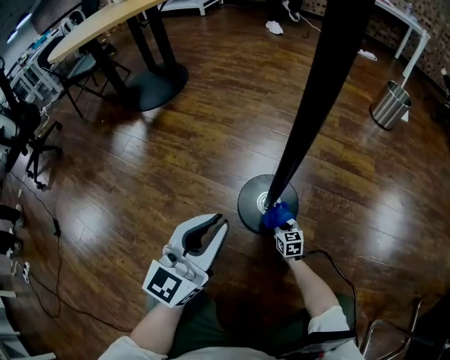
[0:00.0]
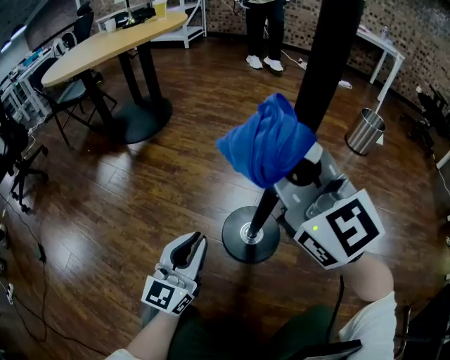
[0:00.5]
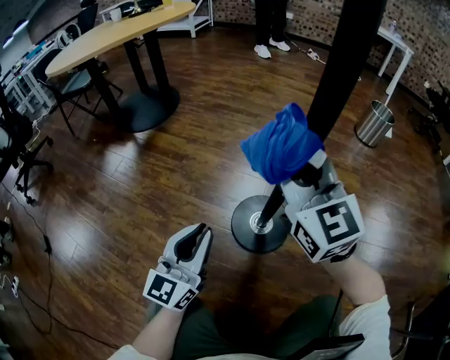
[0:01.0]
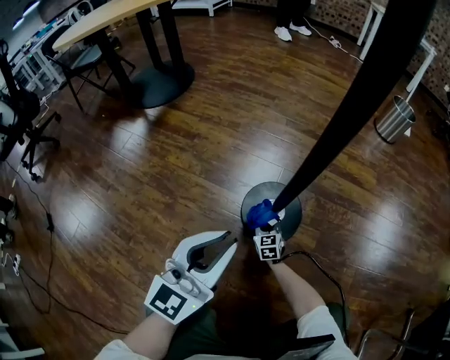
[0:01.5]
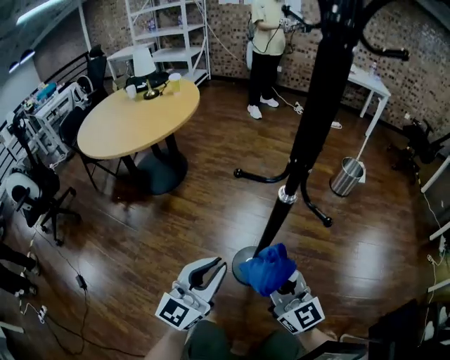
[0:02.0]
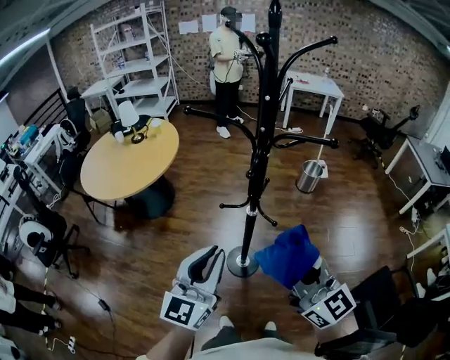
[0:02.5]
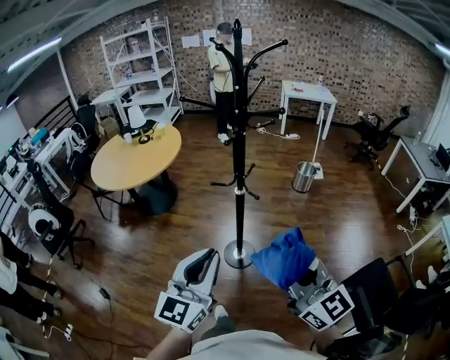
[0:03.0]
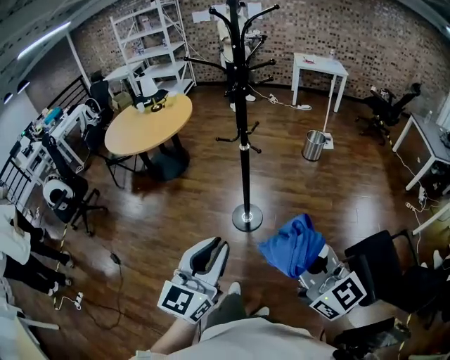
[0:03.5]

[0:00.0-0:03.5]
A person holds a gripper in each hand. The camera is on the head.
0:00.0 to 0:02.0: The right gripper moves up and down over some 80 cm, changing direction 2 times, and points its fingers roughly 40 degrees further upward; the left gripper travels upward by approximately 35 cm.
0:02.0 to 0:03.5: The grippers both shift backward and upward by some 50 cm.

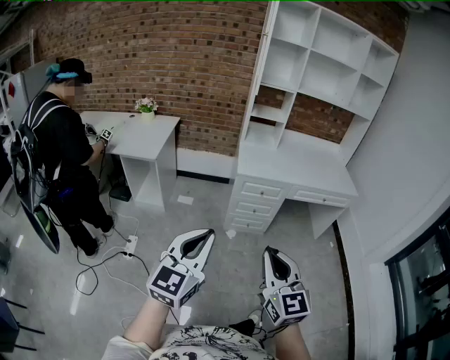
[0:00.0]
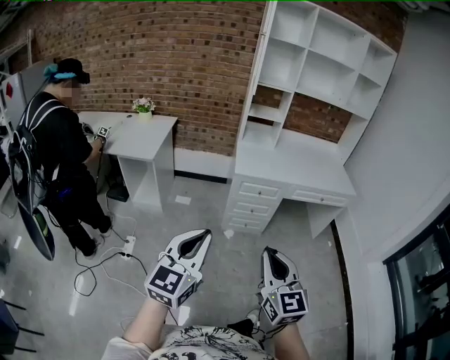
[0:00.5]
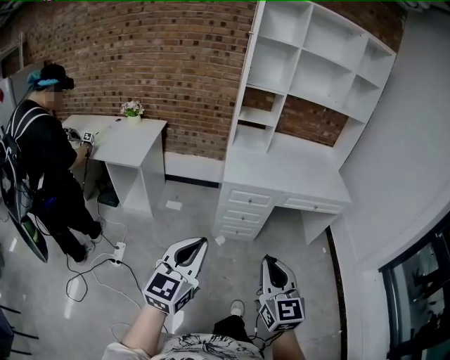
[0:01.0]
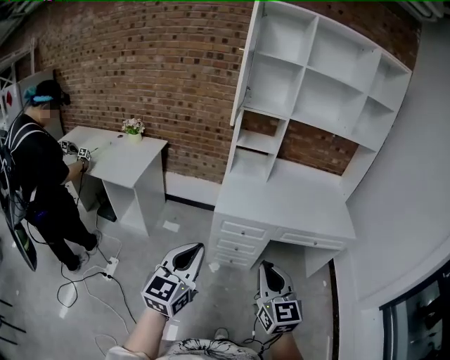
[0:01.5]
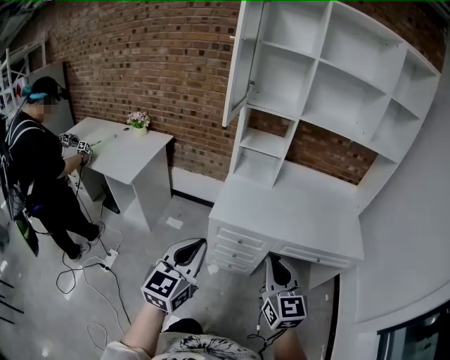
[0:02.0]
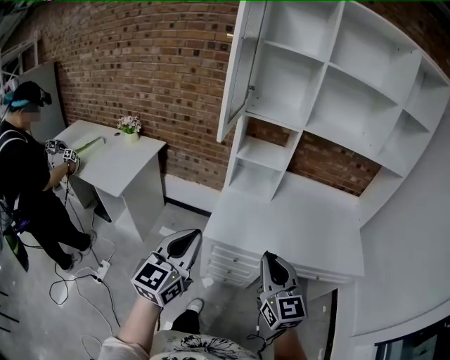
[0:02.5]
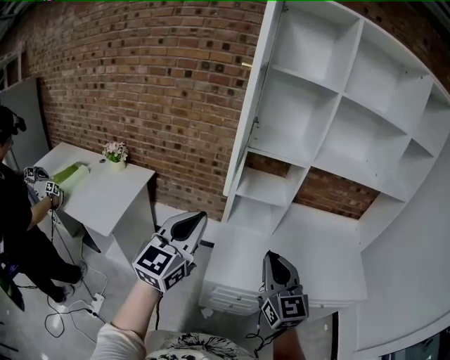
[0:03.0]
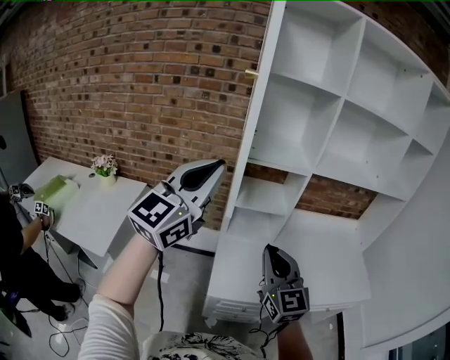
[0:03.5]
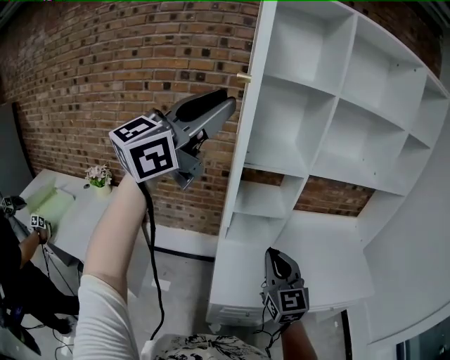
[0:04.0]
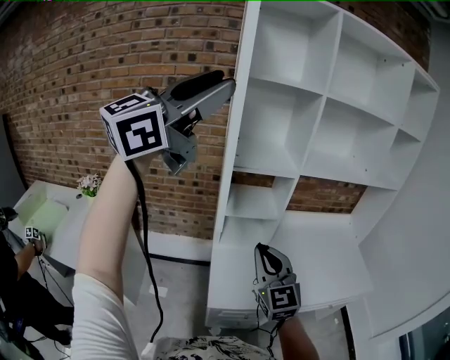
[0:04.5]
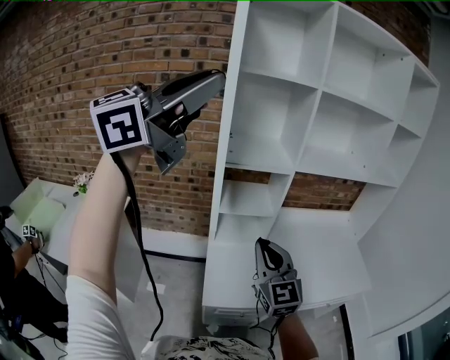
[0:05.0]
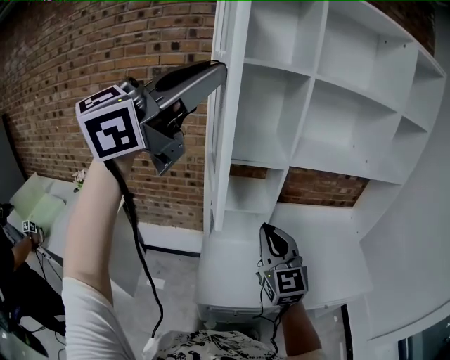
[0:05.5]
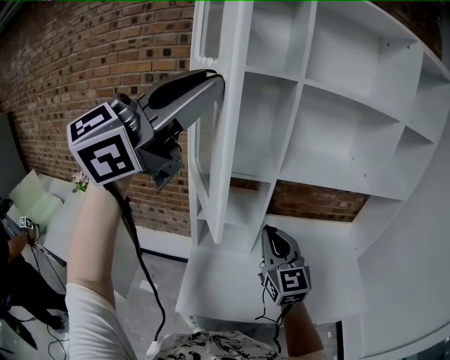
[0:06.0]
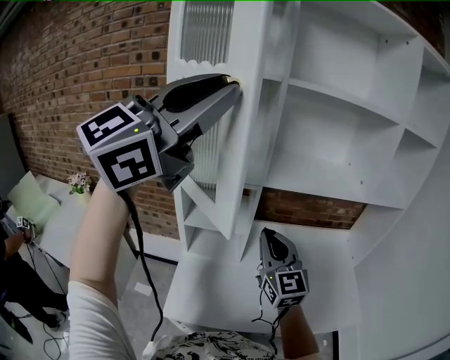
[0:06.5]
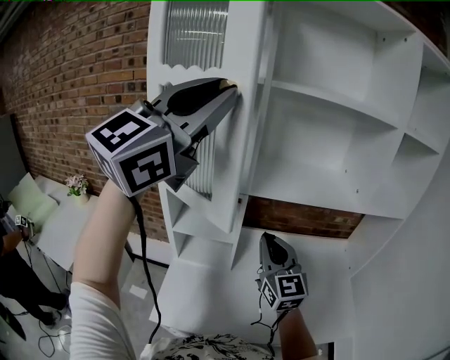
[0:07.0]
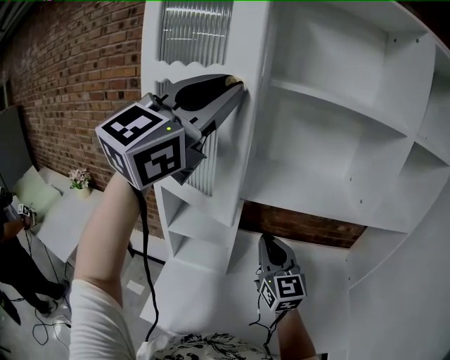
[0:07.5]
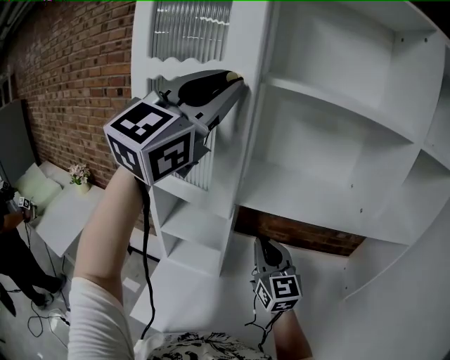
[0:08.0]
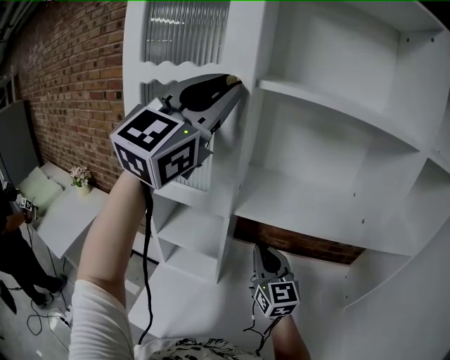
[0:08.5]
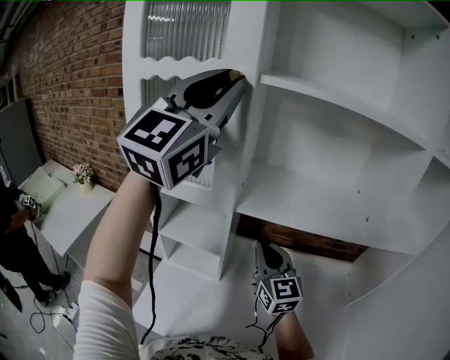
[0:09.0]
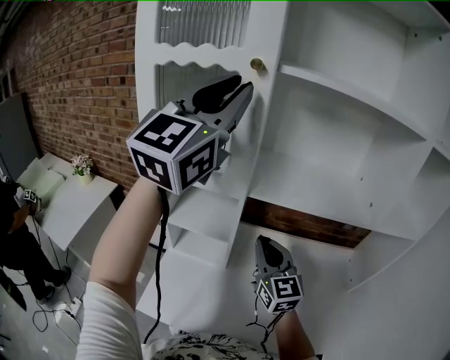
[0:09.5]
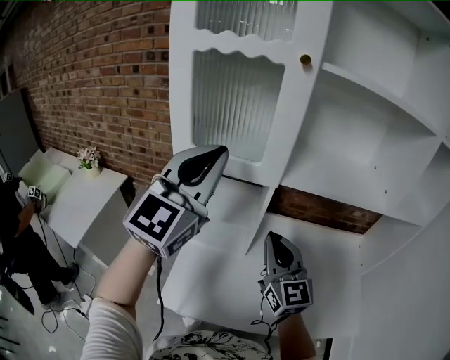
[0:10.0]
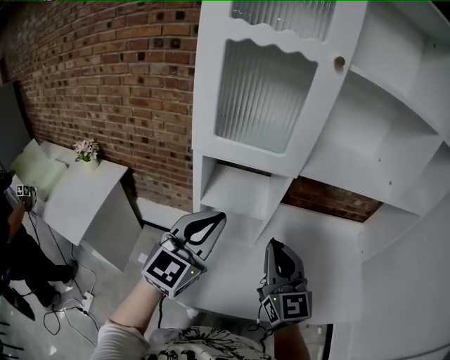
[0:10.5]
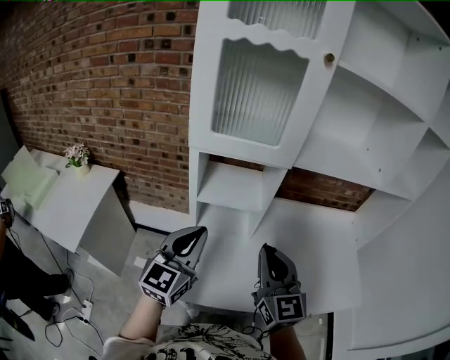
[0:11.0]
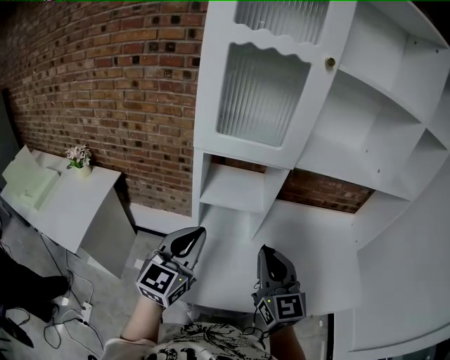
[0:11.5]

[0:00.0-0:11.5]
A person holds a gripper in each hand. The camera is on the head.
0:00.0 to 0:02.0: The grippers both shift forward and to the right by about 40 cm.
0:02.0 to 0:04.0: The left gripper travels forward and upward by approximately 60 cm, swivels approximately 50 degrees, and opens. Meanwhile the right gripper moves forward and to the left, some 40 cm.
0:04.0 to 0:06.0: The left gripper goes about 15 cm to the right and forward, while the right gripper moves forward and to the right, some 20 cm.
0:06.0 to 0:07.5: Both grippers travel together forward and to the right, some 20 cm. The left gripper turns by approximately 20 degrees.
0:07.5 to 0:09.5: The left gripper goes some 5 cm forward.
0:09.5 to 0:11.5: The left gripper is displaced downward, backward and to the left by approximately 40 cm, turns by approximately 30 degrees, and closes its fingers; the right gripper moves backward and to the left, roughly 20 cm.

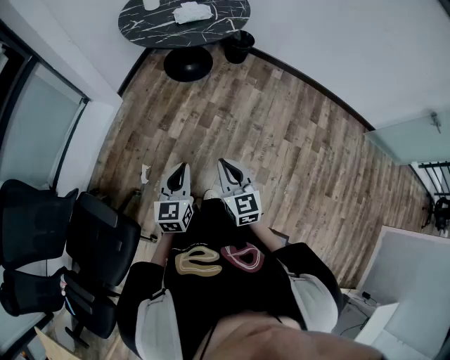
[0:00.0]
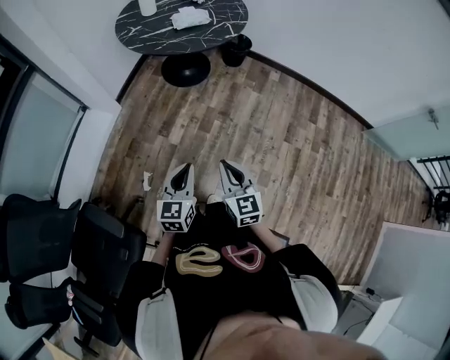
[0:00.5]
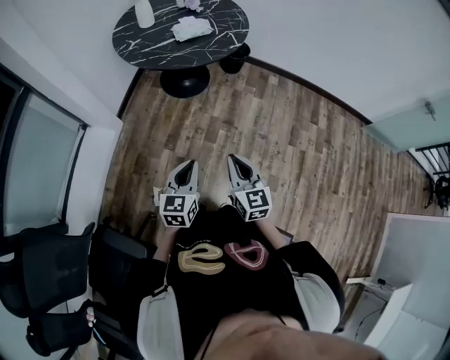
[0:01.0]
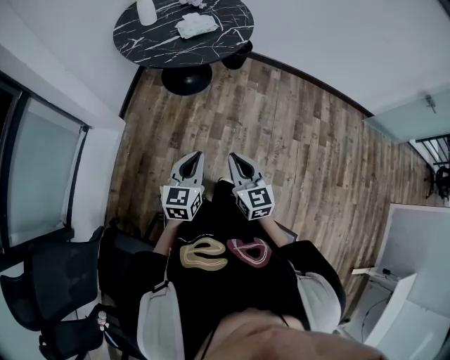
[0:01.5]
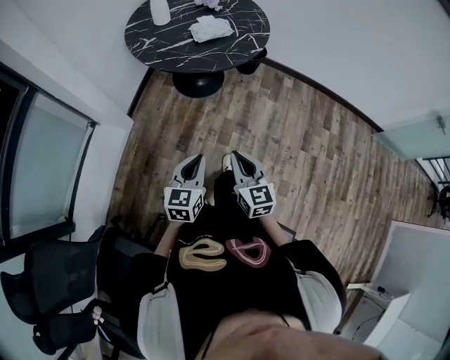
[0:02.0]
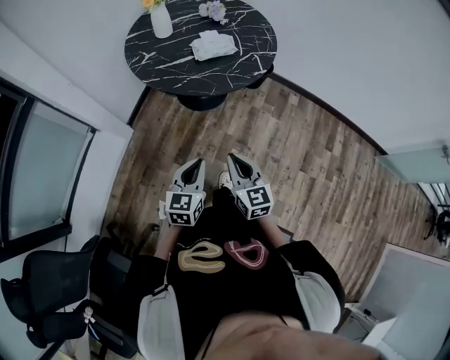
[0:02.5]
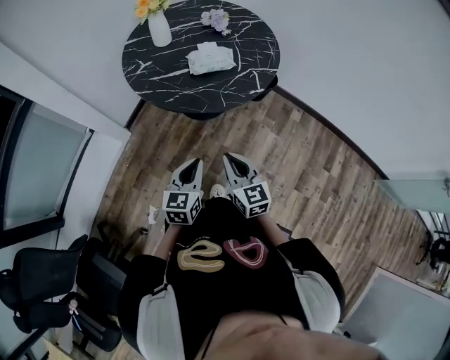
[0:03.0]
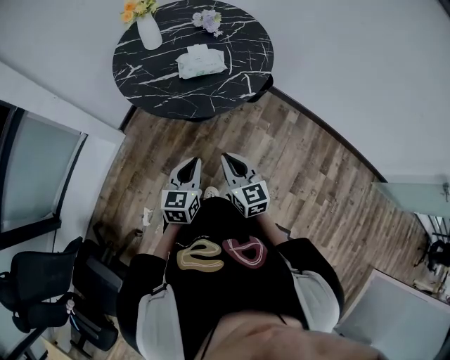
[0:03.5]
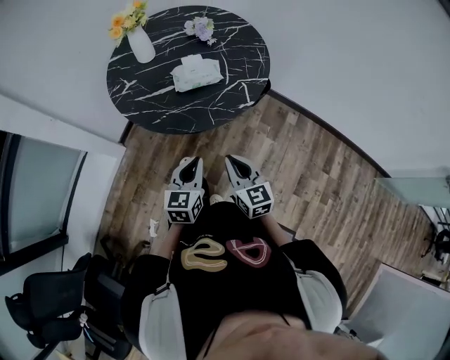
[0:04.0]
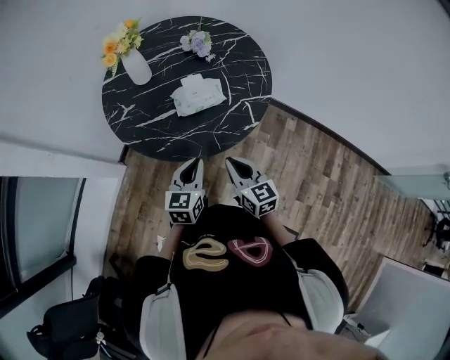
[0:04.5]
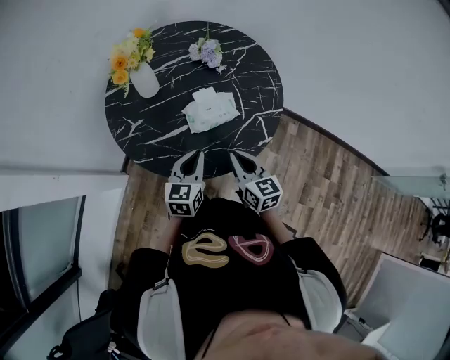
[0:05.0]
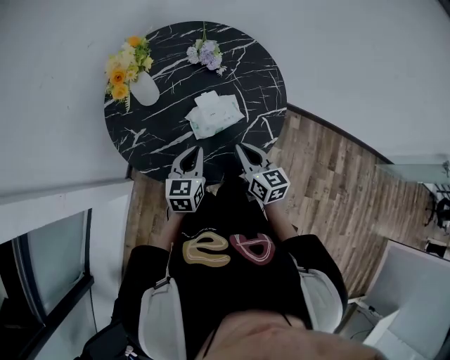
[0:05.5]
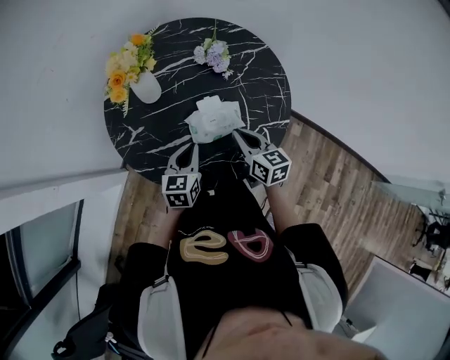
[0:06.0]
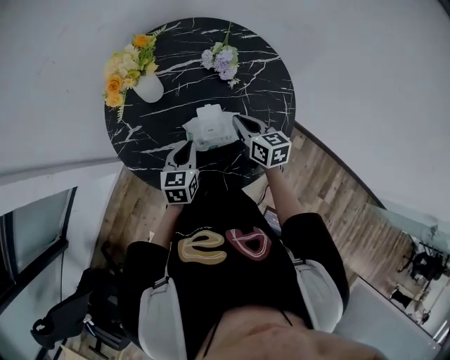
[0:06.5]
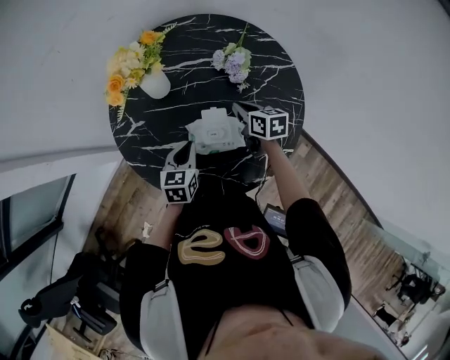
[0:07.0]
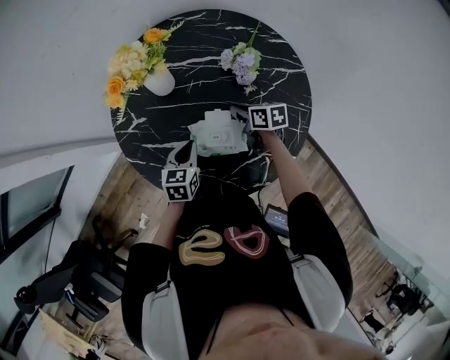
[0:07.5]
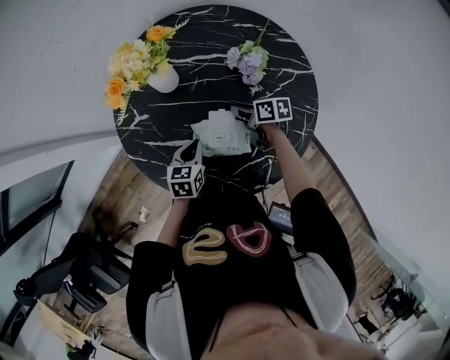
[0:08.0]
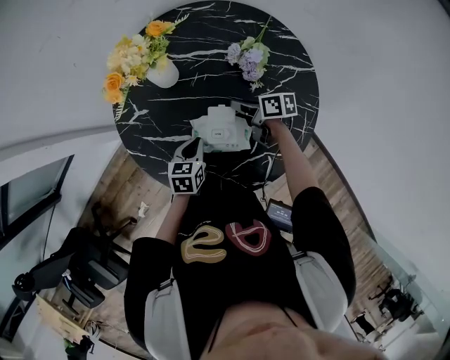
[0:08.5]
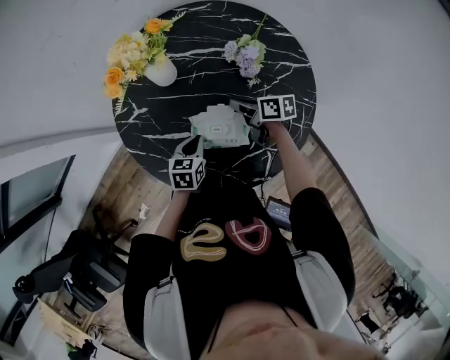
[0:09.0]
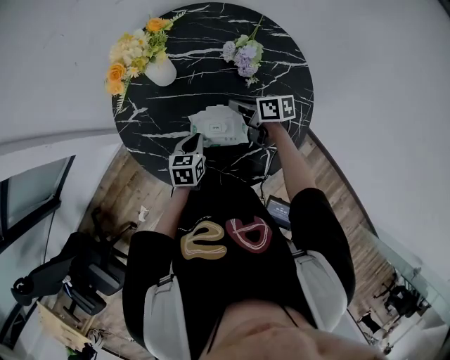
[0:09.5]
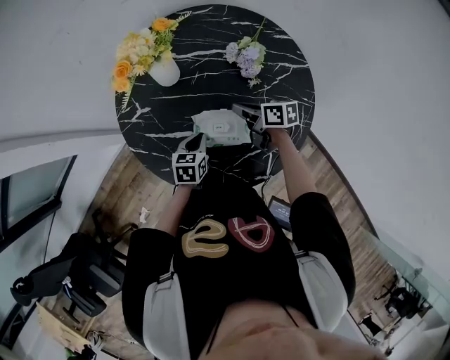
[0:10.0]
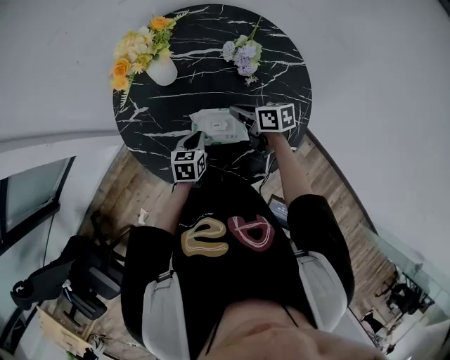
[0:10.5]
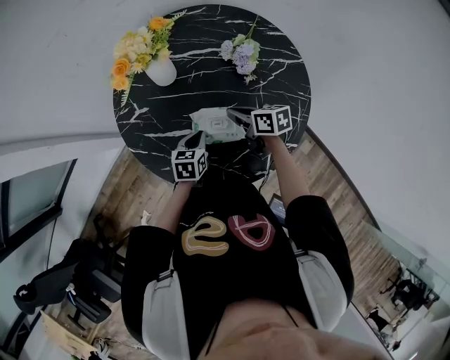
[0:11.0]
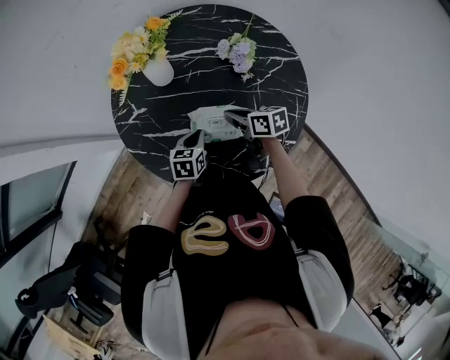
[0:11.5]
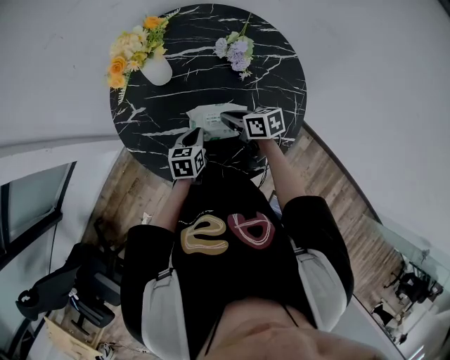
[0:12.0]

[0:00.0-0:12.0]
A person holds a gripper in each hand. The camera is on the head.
0:00.0 to 0:02.0: The two grippers go roughly 25 cm forward and to the left.
0:02.0 to 0:04.0: The grippers both shift forward and to the right by some 30 cm.
0:04.0 to 0:06.0: Both grippers move forward, some 30 cm.
0:06.0 to 0:08.0: The right gripper shifts by approximately 20 cm, and changes its angle by about 50 degrees. The left gripper travels downward by about 10 cm, and rotates approximately 30 degrees.
0:08.0 to 0:10.0: The right gripper heads upward, covering approximately 5 cm.
0:10.0 to 0:12.0: The right gripper moves roughly 5 cm.
